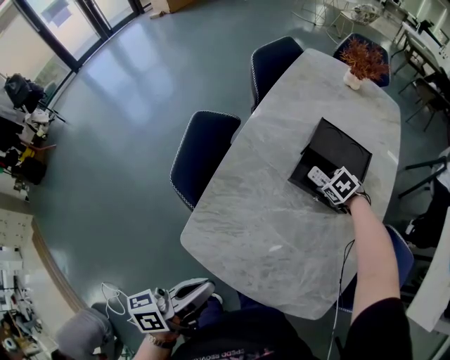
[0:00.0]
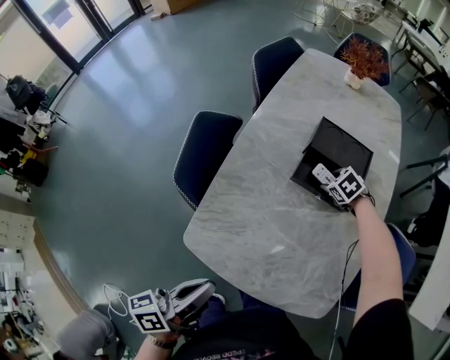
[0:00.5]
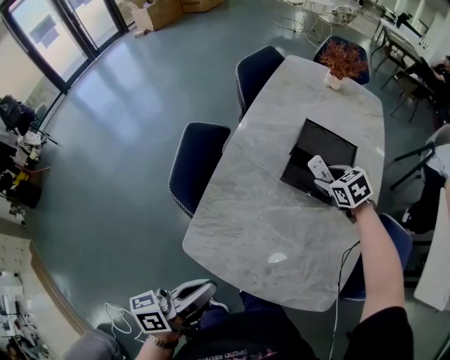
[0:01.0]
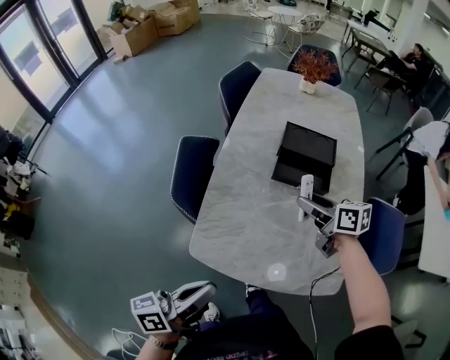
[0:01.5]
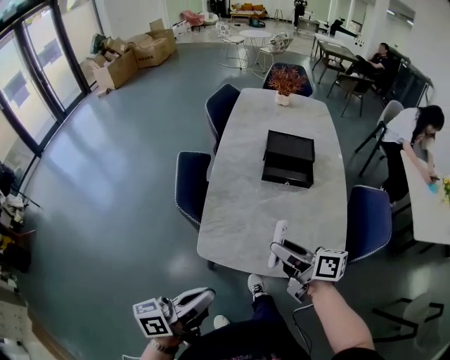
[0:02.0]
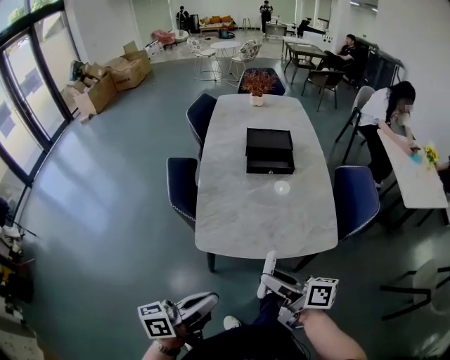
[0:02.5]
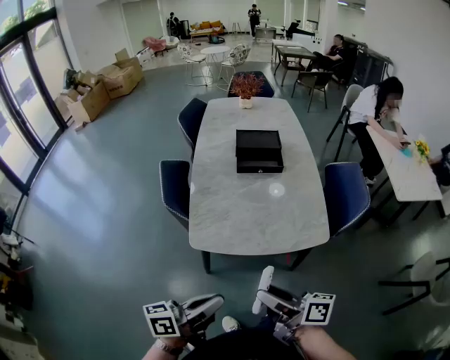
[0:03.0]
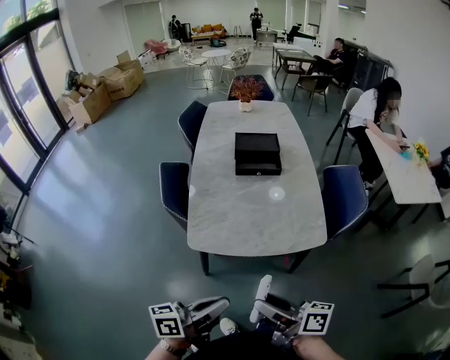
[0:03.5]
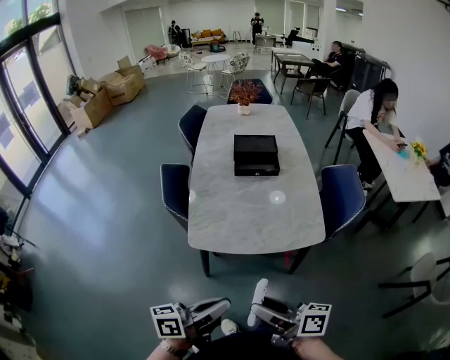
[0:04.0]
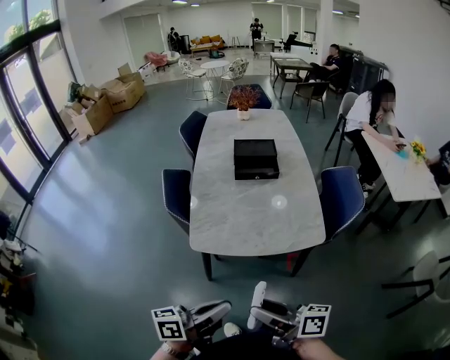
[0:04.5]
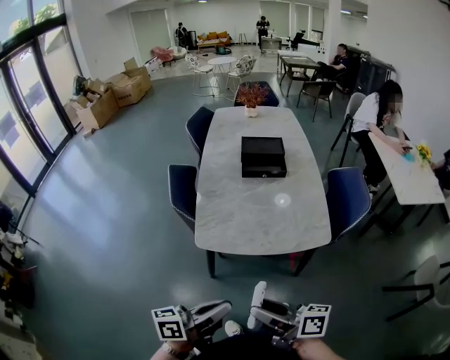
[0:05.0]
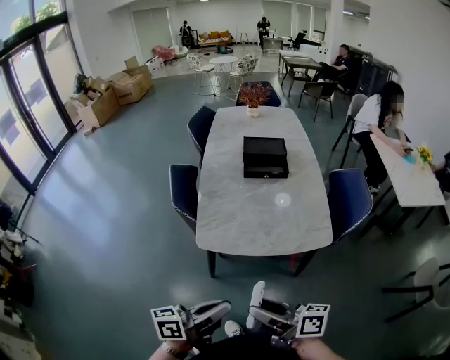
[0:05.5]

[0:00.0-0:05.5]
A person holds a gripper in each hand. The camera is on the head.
0:00.0 to 0:02.0: The left gripper moves about 15 cm, and swivels approximately 20 degrees, while the right gripper shifts by about 50 cm, and points its fingers approximately 70 degrees further upward.
0:02.0 to 0:03.5: The right gripper heads backward, covering some 25 cm; the left gripper heads backward and to the right, covering some 15 cm.
0:03.5 to 0:05.5: The grippers stay close to where they were, moving slightly.

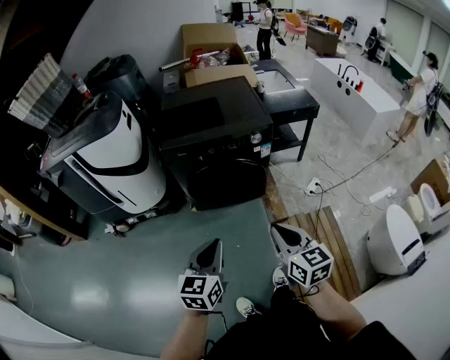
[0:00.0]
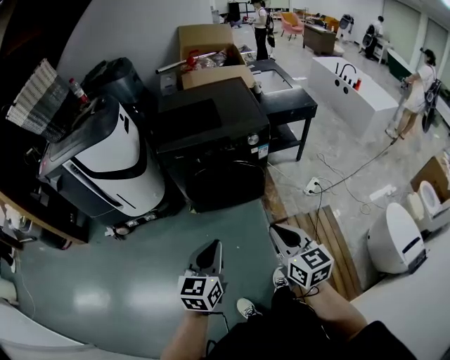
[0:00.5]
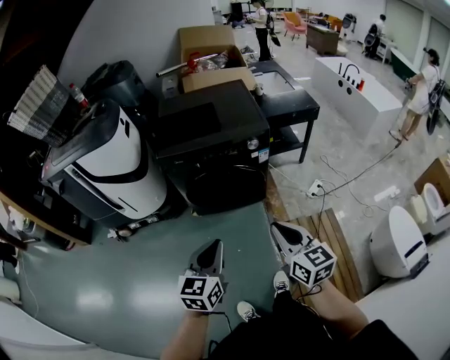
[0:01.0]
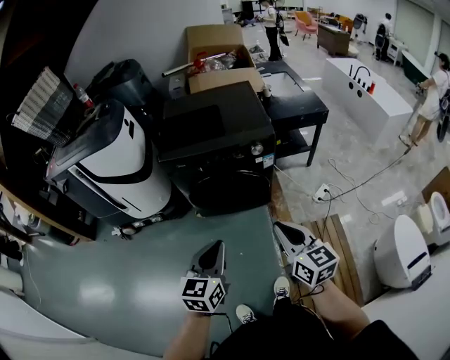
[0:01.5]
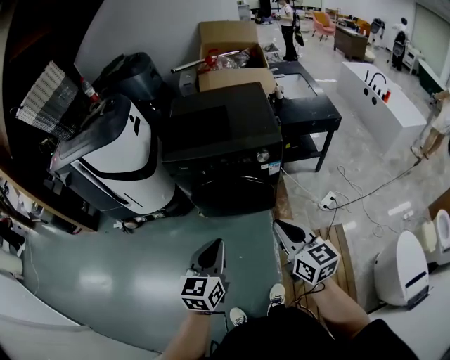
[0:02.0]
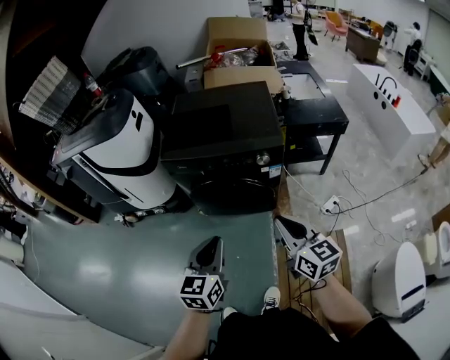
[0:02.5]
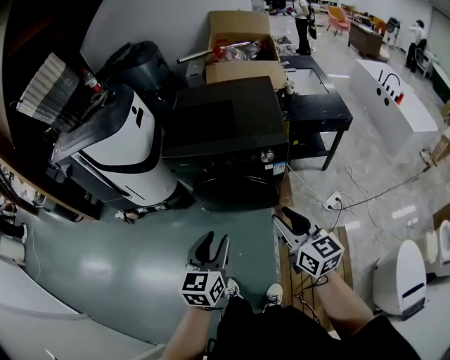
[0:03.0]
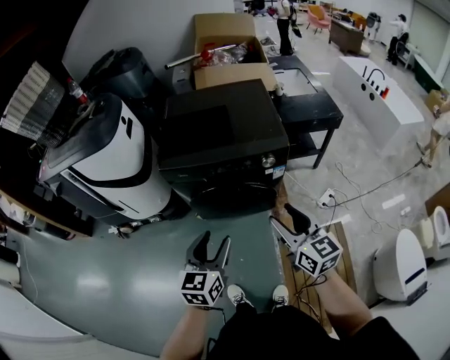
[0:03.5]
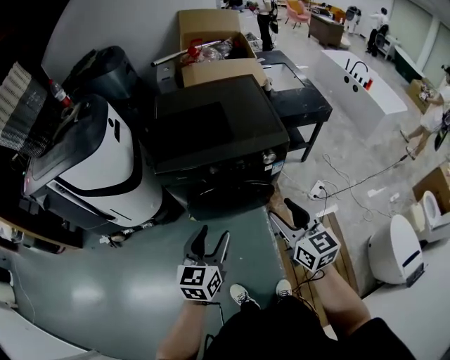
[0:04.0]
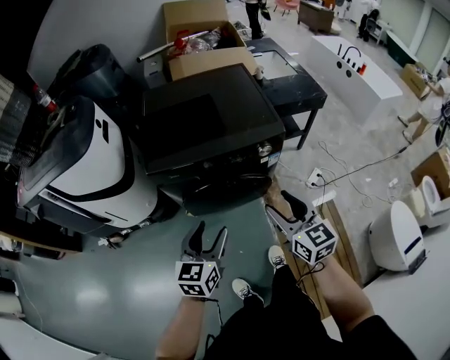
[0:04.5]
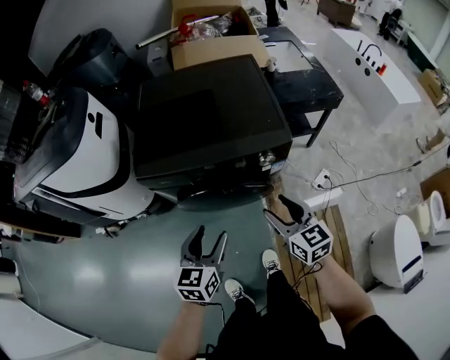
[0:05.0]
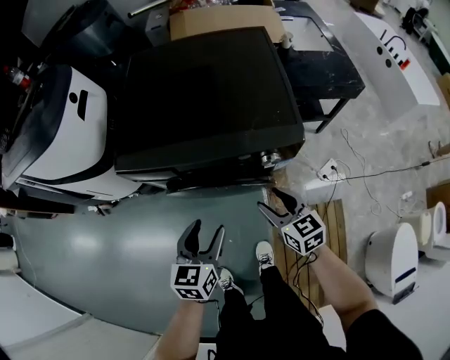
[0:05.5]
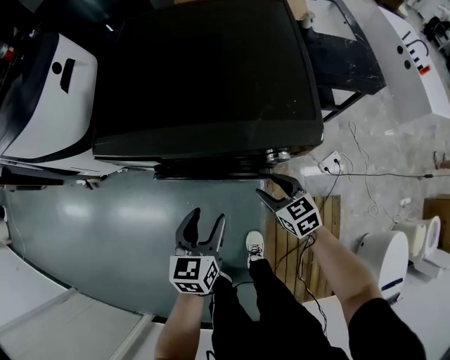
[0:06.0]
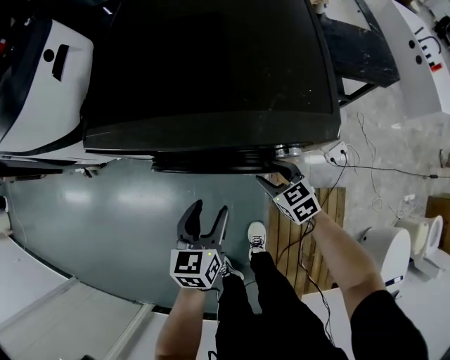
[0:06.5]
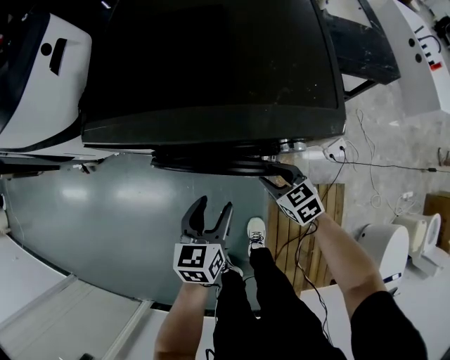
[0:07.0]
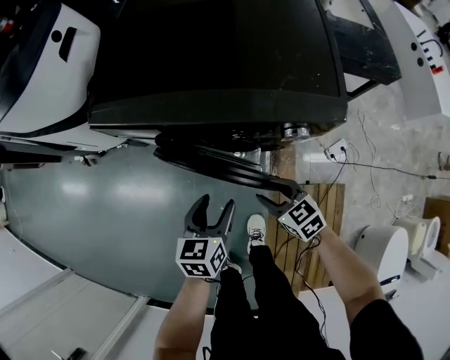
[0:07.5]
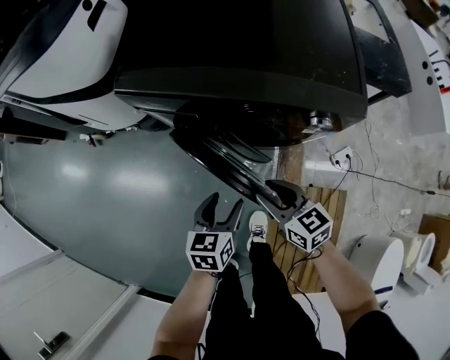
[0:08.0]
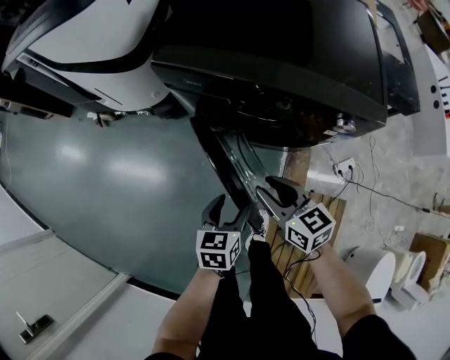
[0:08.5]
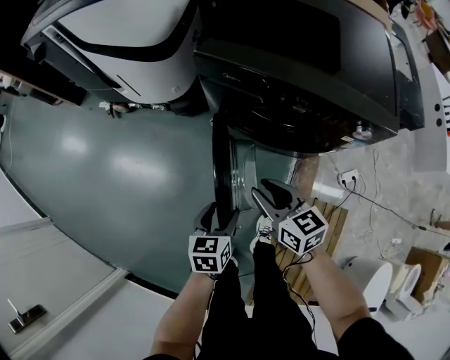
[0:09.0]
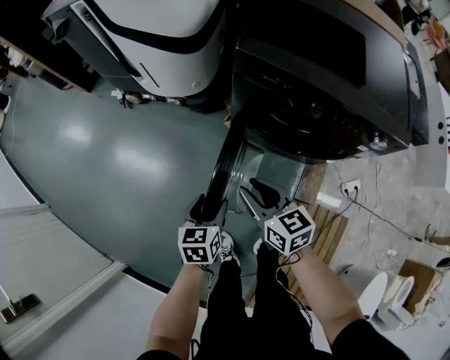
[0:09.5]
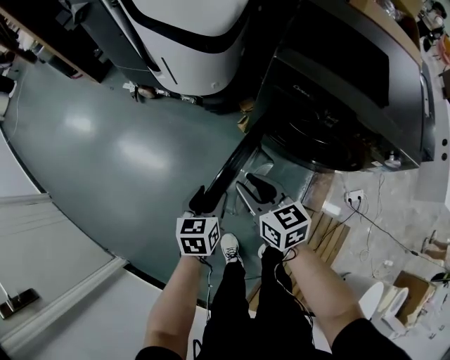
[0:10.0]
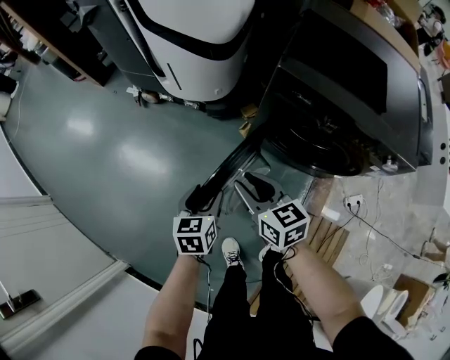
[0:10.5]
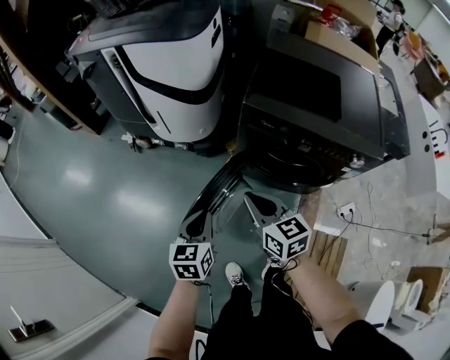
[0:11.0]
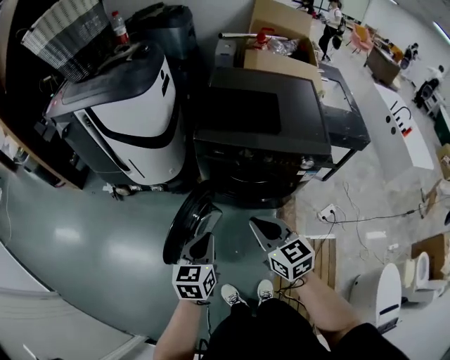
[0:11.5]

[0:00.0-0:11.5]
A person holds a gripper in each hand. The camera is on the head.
0:00.0 to 0:02.0: The grippers both shift forward and to the right by about 15 cm.
0:02.0 to 0:04.0: Both grippers move forward and to the left, roughly 15 cm. The left gripper opens its fingers; the right gripper opens up.
0:04.0 to 0:06.0: The right gripper travels downward and forward by roughly 40 cm, and changes its angle by some 40 degrees. The left gripper heads downward, forward and to the right, covering some 30 cm, and rotates approximately 20 degrees.
0:06.0 to 0:07.5: The left gripper travels downward by about 5 cm; the right gripper travels backward and to the left by approximately 10 cm.
0:07.5 to 0:09.5: The two grippers go some 30 cm to the left.
0:09.5 to 0:11.5: The two grippers go some 20 cm upward. The left gripper rotates some 20 degrees, and closes up; the right gripper swivels about 20 degrees, and closes.

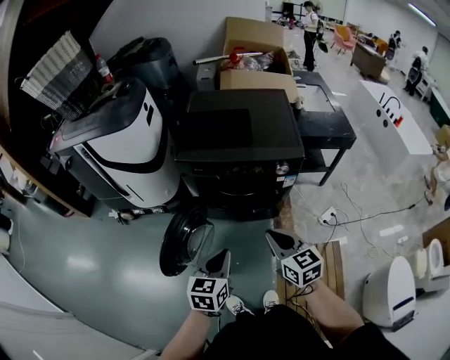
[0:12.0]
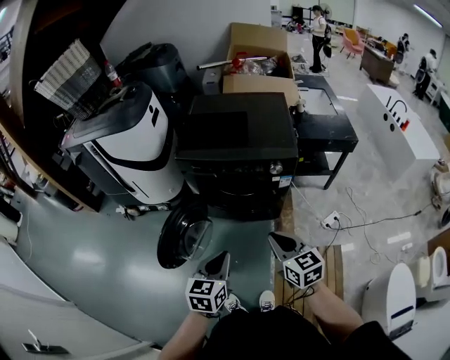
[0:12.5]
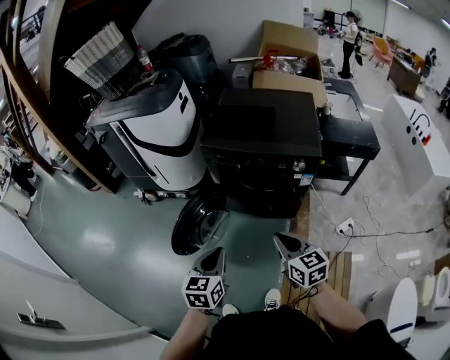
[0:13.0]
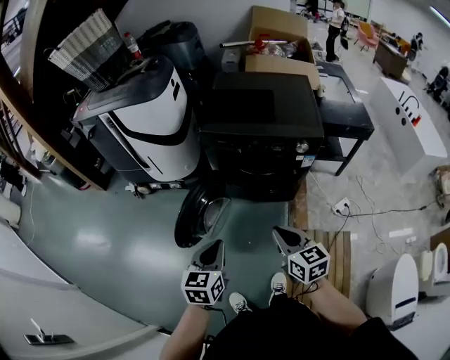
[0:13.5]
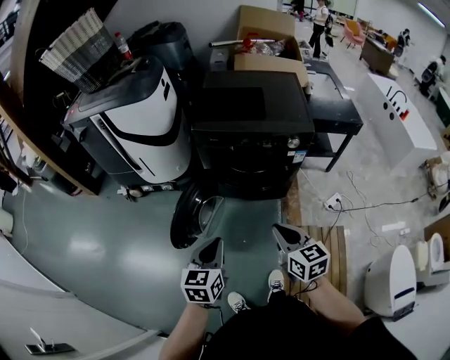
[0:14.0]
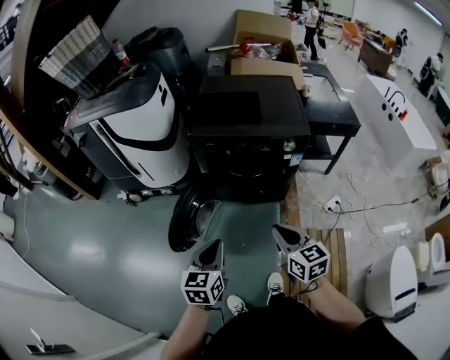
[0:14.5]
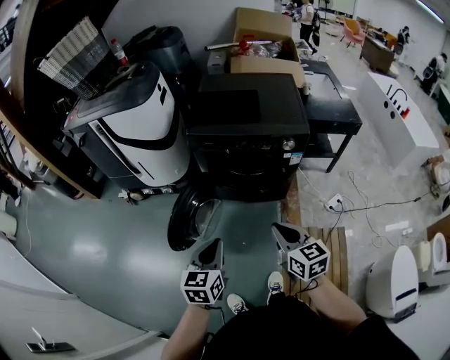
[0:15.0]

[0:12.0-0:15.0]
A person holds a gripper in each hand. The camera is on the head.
0:12.0 to 0:13.5: The left gripper travels to the left and backward by some 10 cm. The right gripper is displaced backward and to the left by roughly 10 cm.
0:13.5 to 0:15.0: The grippers stay close to where they were, moving slightly.

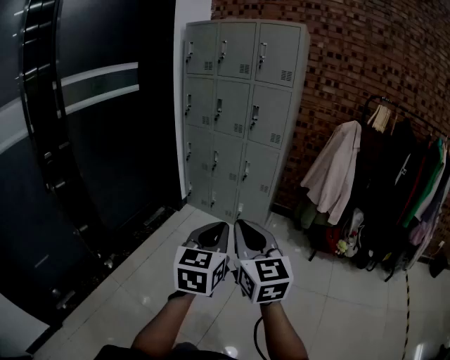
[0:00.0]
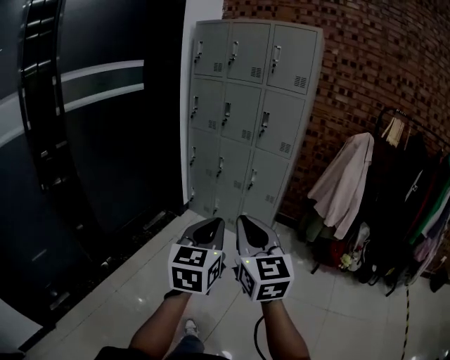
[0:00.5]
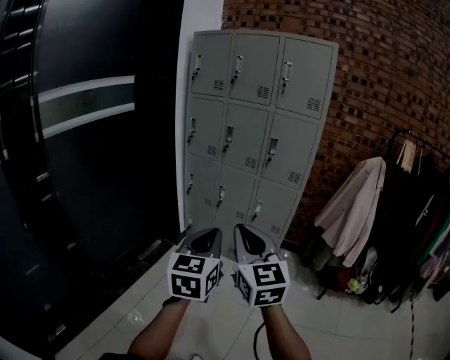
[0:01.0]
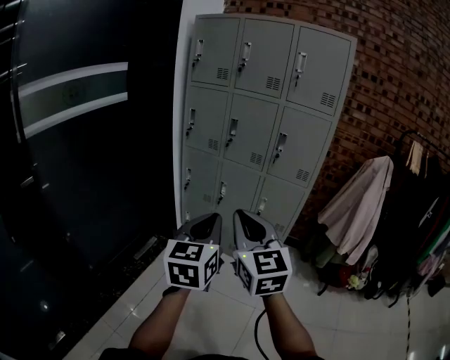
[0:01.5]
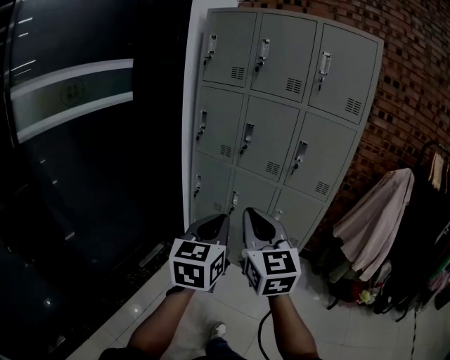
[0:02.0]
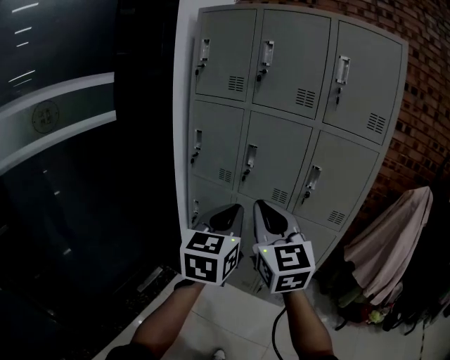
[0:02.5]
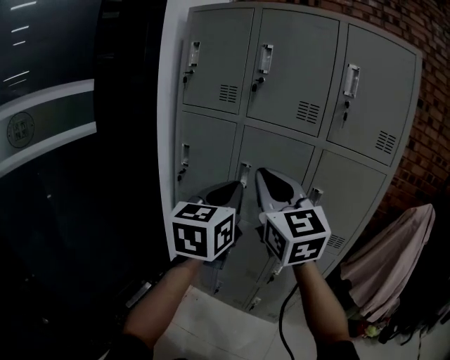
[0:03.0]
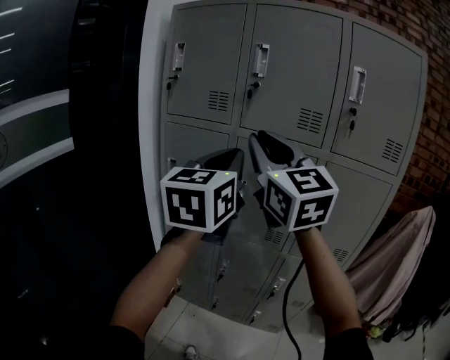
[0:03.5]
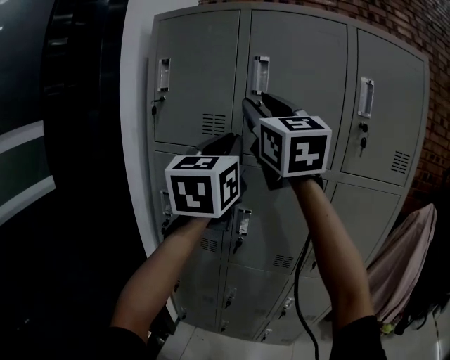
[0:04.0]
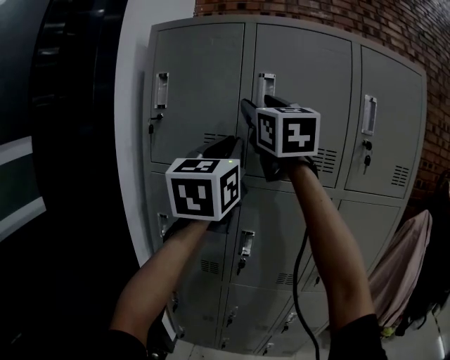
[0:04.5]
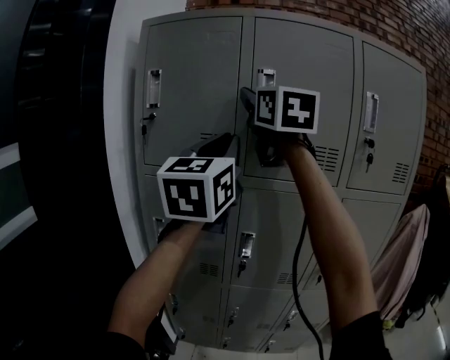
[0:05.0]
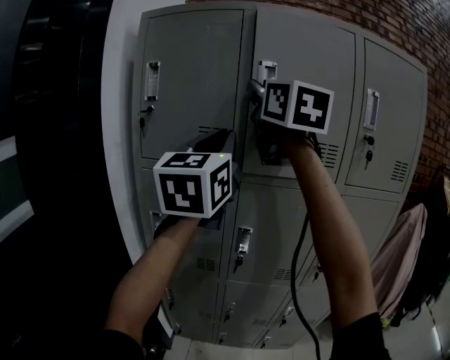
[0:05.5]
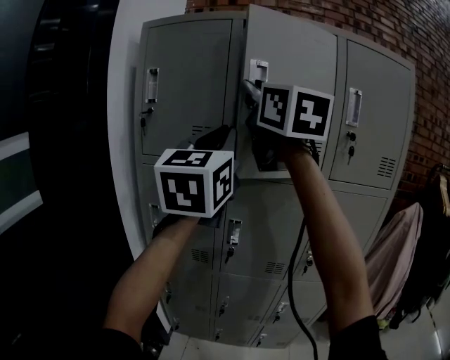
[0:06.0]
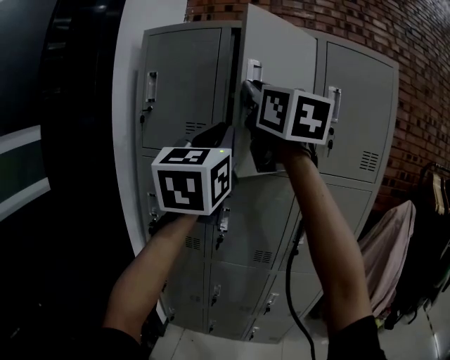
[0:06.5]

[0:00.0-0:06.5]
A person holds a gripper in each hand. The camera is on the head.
0:00.0 to 0:02.0: The pair of grippers is taken forward, approximately 50 cm.
0:02.0 to 0:04.5: The pair of grippers is taken forward, roughly 60 cm. The two grippers go some 35 cm upward. The left gripper rotates about 30 degrees, while the right gripper turns by about 20 degrees, and opens.
0:04.5 to 0:06.5: Both grippers move backward and to the right, roughly 15 cm. The right gripper closes.
